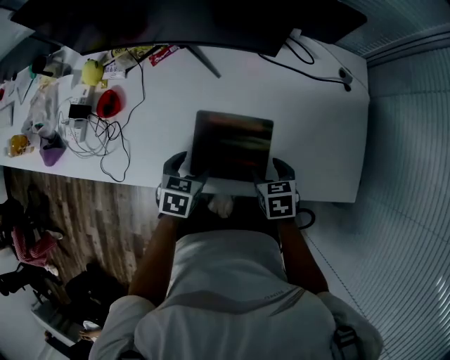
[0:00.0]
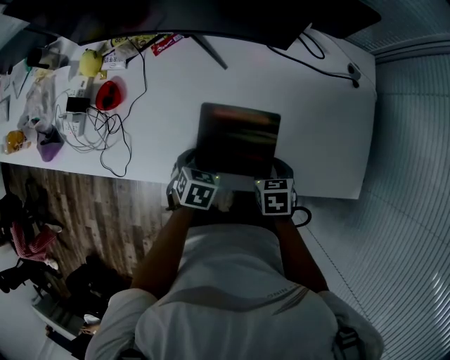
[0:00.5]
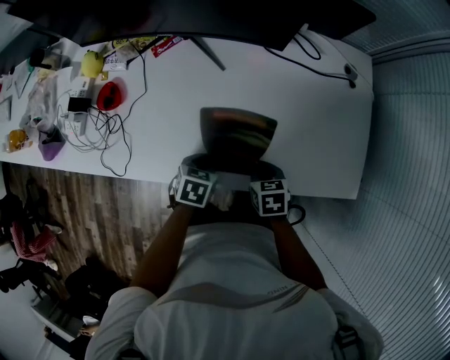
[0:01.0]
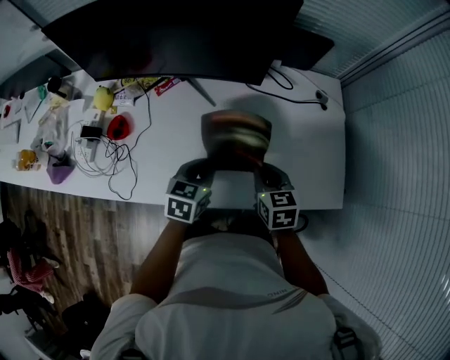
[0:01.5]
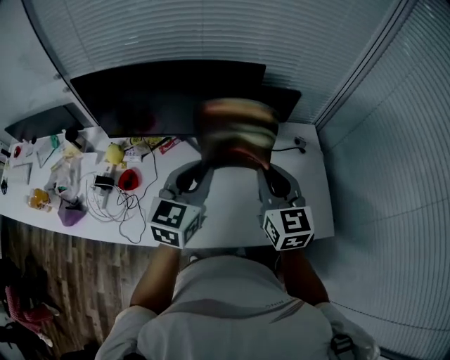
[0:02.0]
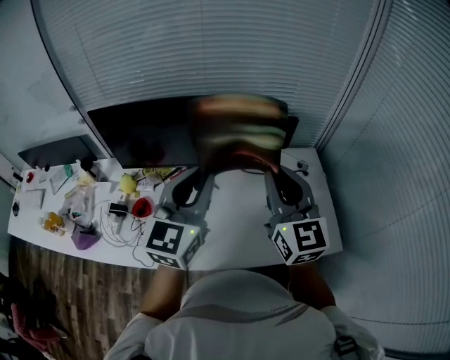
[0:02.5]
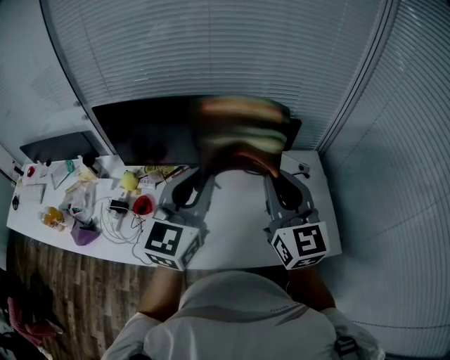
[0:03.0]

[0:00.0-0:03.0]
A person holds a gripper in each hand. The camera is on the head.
0:00.0 to 0:01.5: The grippers both shift upward by some 10 cm. The right gripper swivels about 20 degrees, and closes its fingers. The left gripper closes up.
0:01.5 to 0:03.0: Both grippers move upward, approximately 35 cm. The right gripper angles its fingers upward, by about 50 degrees. Meanwhile the left gripper angles its fingers upward, by some 40 degrees.

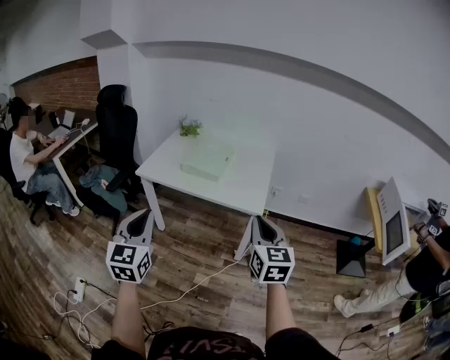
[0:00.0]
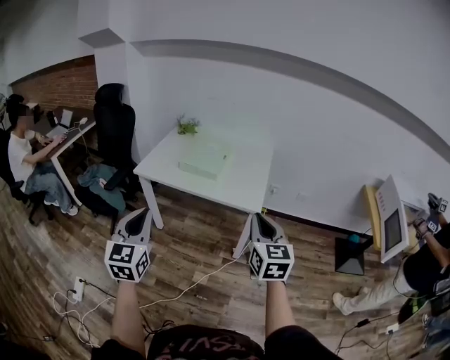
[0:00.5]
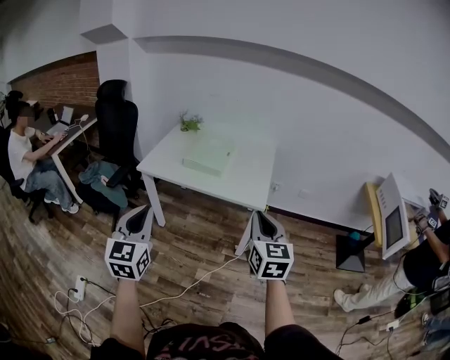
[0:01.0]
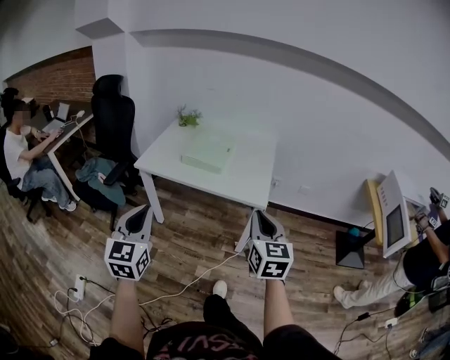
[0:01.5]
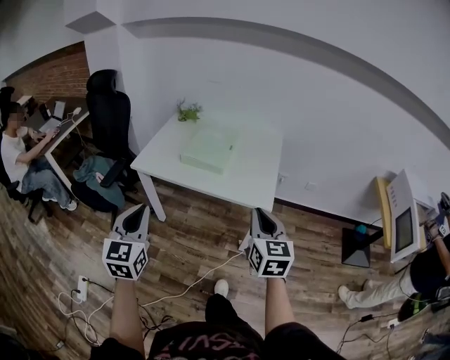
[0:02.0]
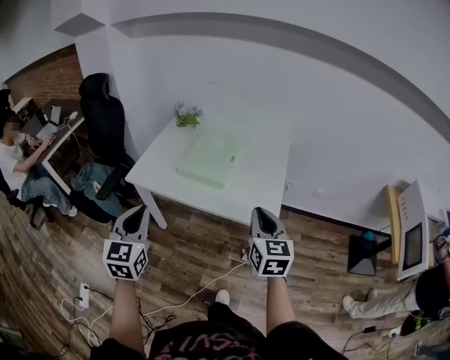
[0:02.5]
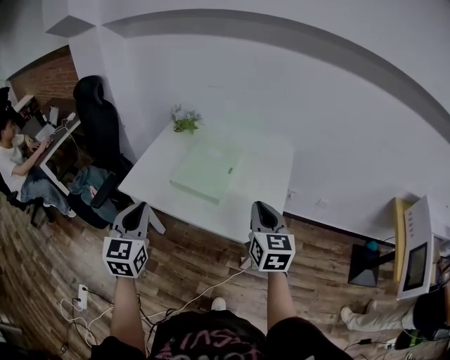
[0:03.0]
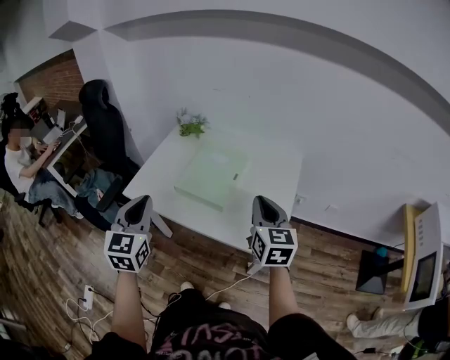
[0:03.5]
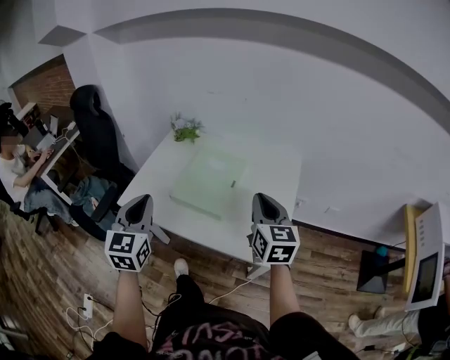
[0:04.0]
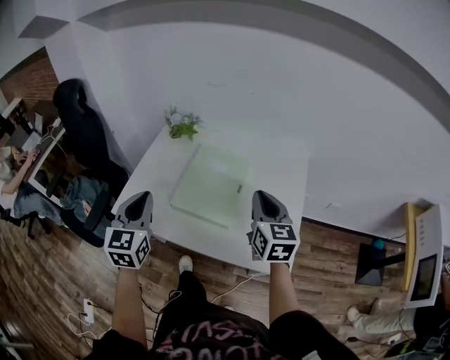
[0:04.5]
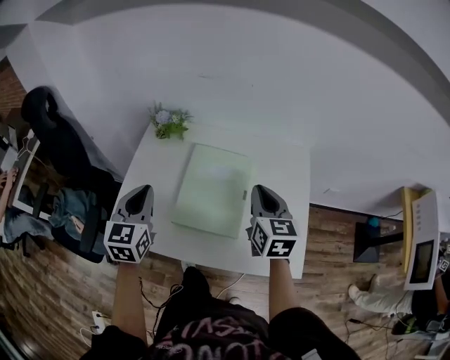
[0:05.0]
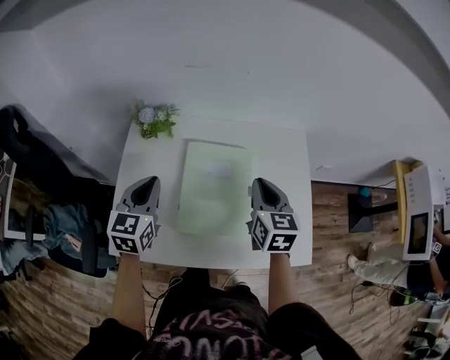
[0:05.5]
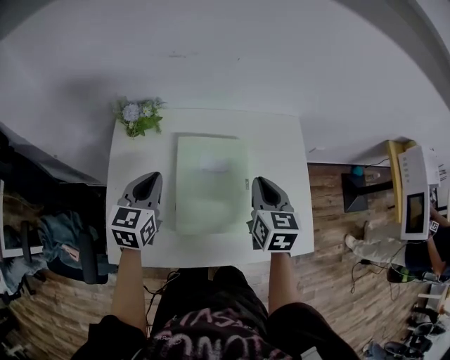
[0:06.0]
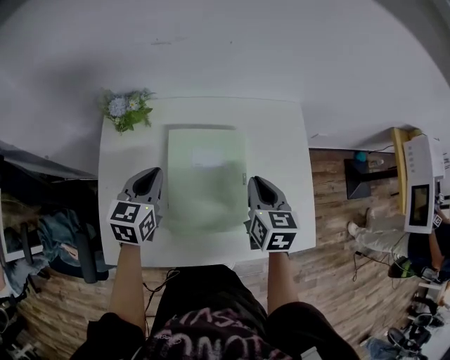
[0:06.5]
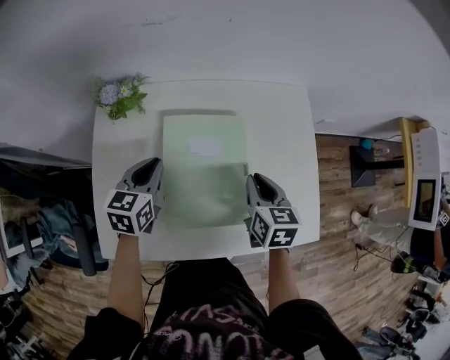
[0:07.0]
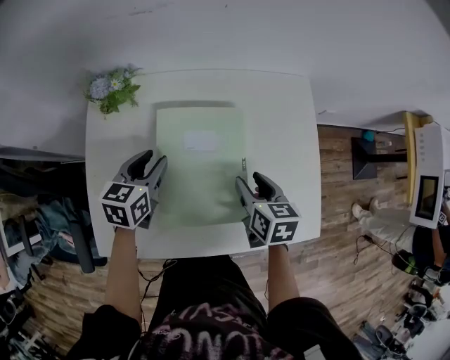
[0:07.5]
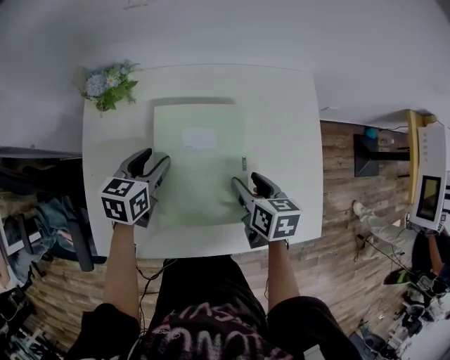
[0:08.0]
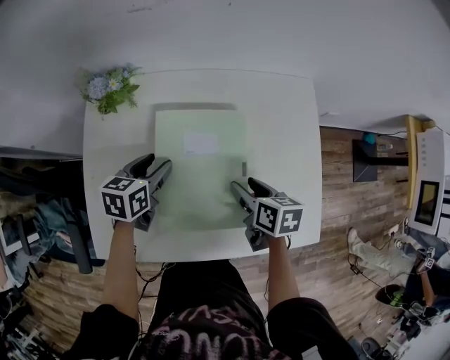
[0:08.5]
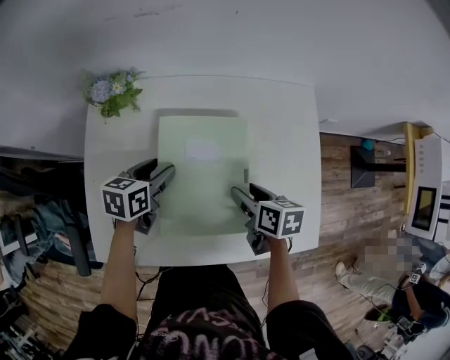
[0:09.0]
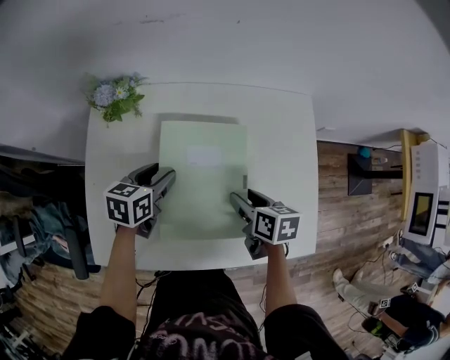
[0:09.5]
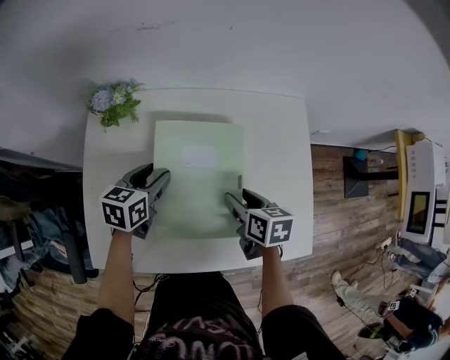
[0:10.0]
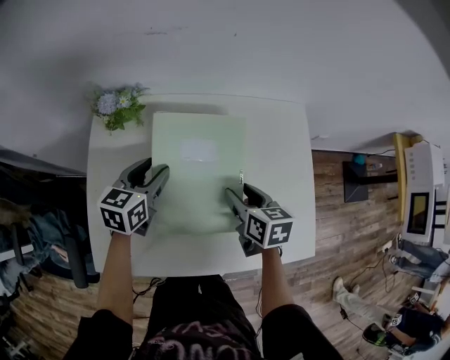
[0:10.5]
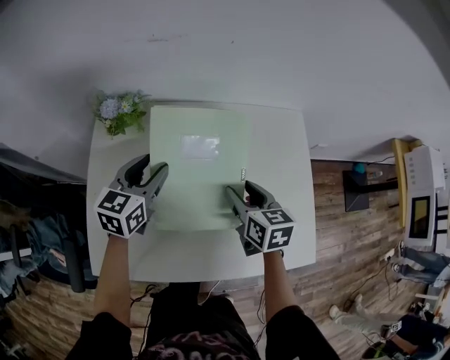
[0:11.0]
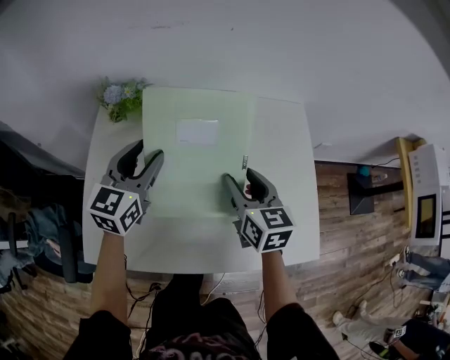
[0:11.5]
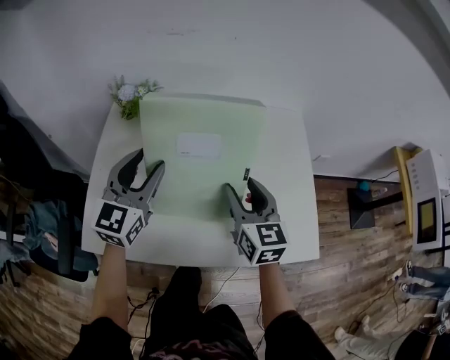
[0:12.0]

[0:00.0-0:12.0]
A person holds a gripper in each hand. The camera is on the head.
0:00.0 to 0:02.0: The grippers both shift forward by some 10 cm.
0:02.0 to 0:04.0: The two grippers go roughly 30 cm forward.
0:04.0 to 0:06.0: The left gripper shifts by some 35 cm, and rotates approximately 40 degrees. The right gripper changes place by roughly 25 cm, and rotates approximately 30 degrees.
0:06.0 to 0:08.0: The left gripper goes roughly 15 cm downward and to the right, changes its angle by about 20 degrees, and opens its fingers, while the right gripper travels downward by approximately 15 cm, rotates about 30 degrees, and opens up.
0:08.0 to 0:10.0: The grippers make only small movements.
0:10.0 to 0:12.0: The left gripper moves upward and backward, roughly 15 cm, and points its fingers roughly 30 degrees further upward. The right gripper is displaced upward by roughly 10 cm, and tips its fingers upward by some 30 degrees.

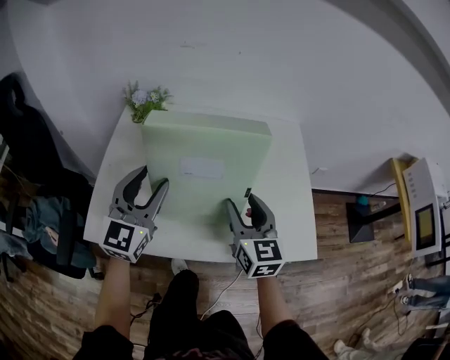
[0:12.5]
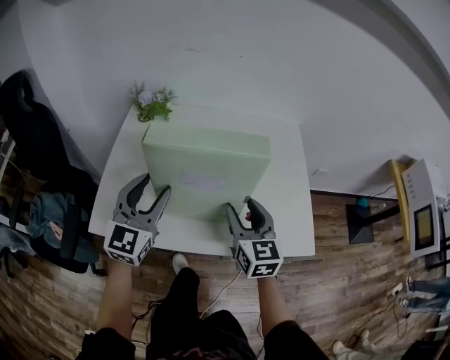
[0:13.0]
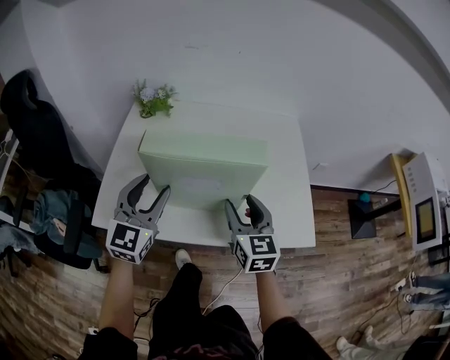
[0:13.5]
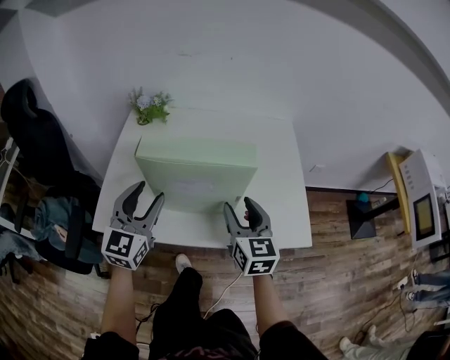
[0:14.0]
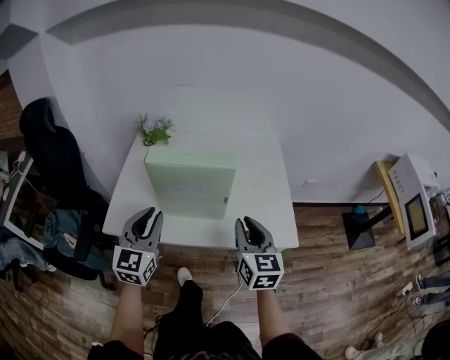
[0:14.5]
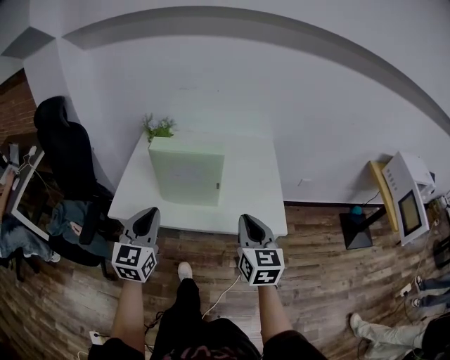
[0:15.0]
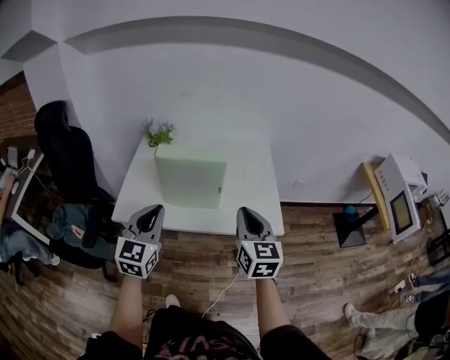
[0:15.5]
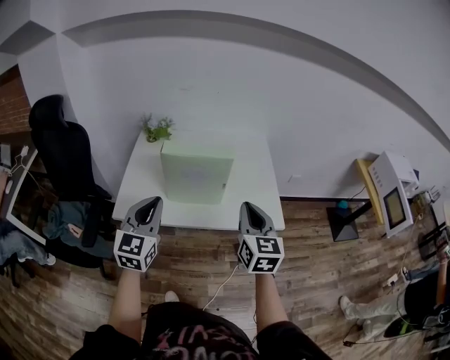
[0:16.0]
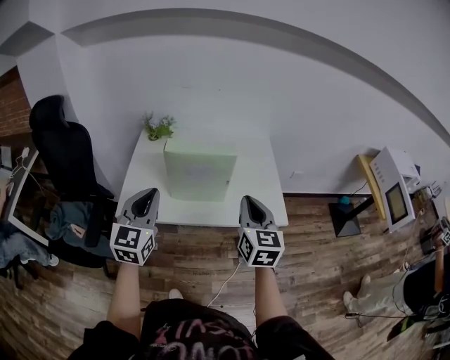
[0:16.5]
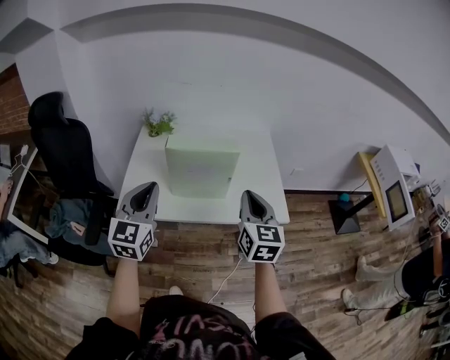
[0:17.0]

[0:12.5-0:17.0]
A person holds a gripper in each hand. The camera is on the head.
0:12.5 to 0:14.5: The right gripper travels backward and upward by about 15 cm, and closes. Meanwhile the left gripper moves backward, roughly 15 cm, and closes.
0:14.5 to 0:17.0: The two grippers go approximately 15 cm upward and backward.

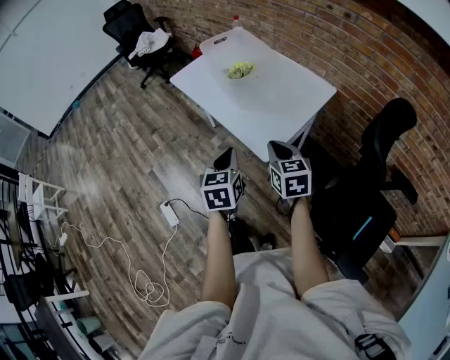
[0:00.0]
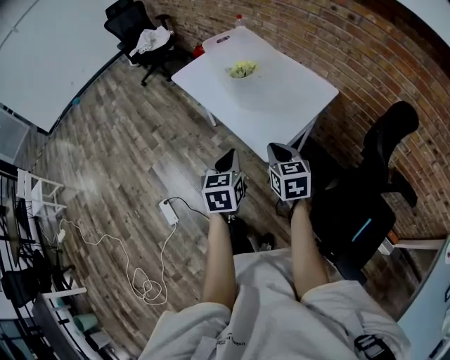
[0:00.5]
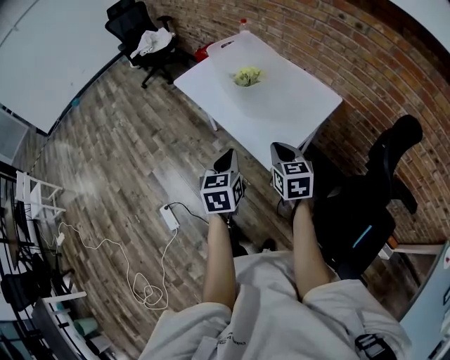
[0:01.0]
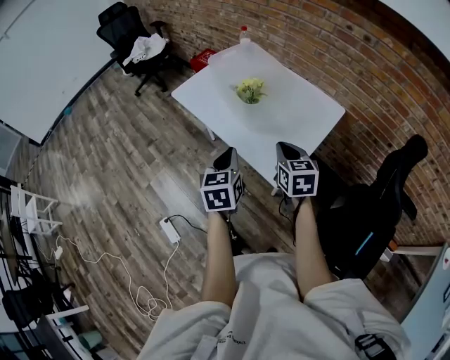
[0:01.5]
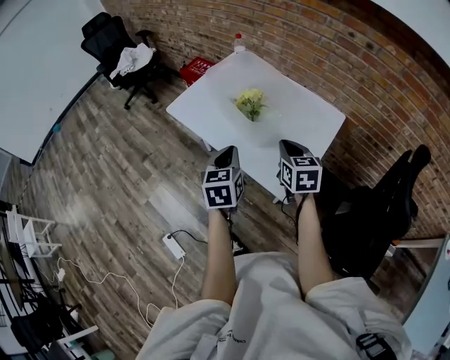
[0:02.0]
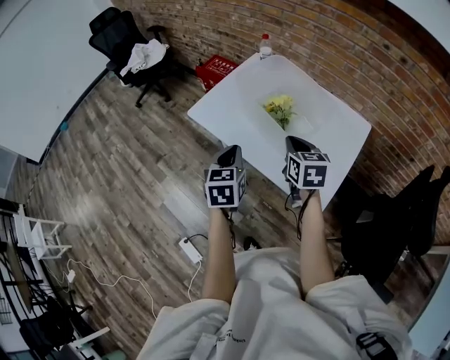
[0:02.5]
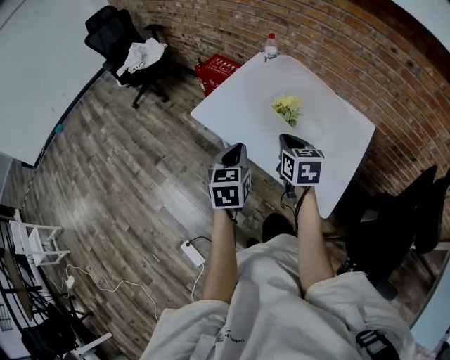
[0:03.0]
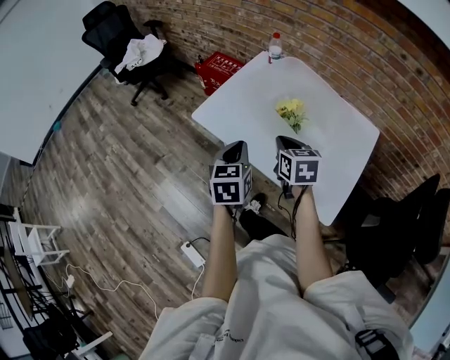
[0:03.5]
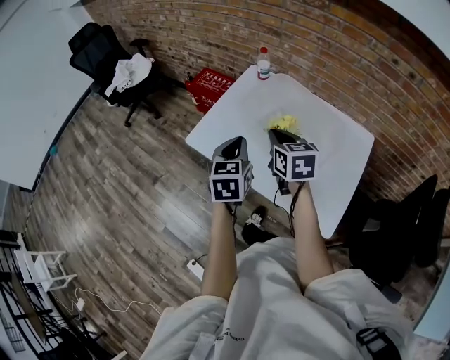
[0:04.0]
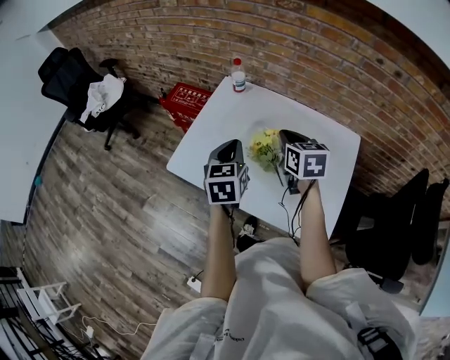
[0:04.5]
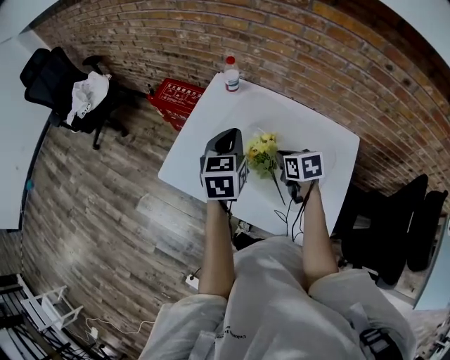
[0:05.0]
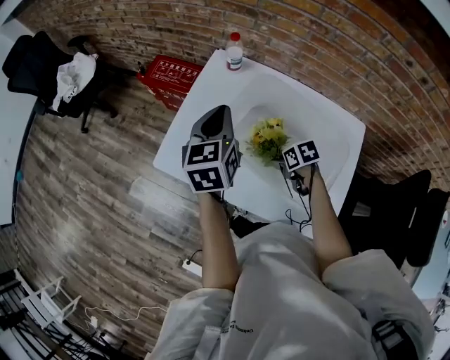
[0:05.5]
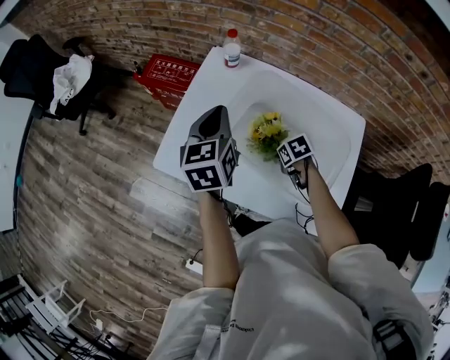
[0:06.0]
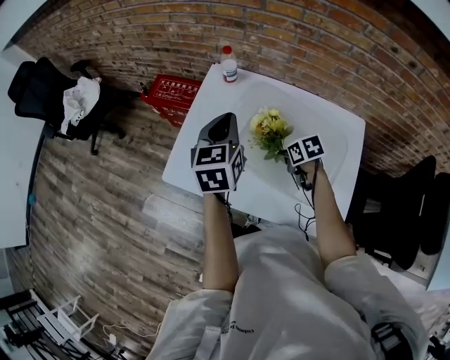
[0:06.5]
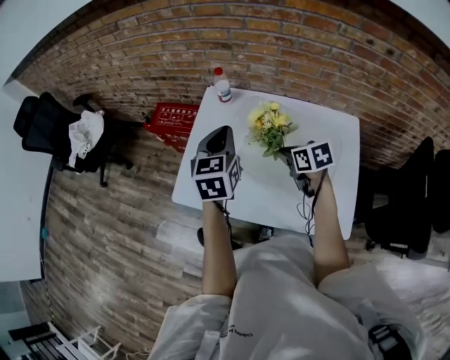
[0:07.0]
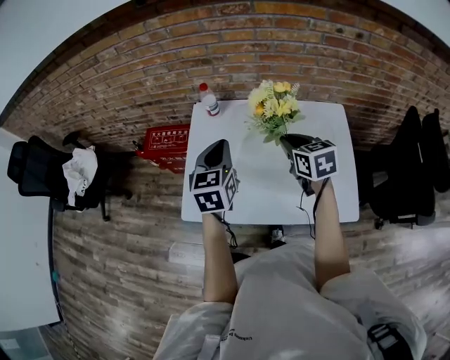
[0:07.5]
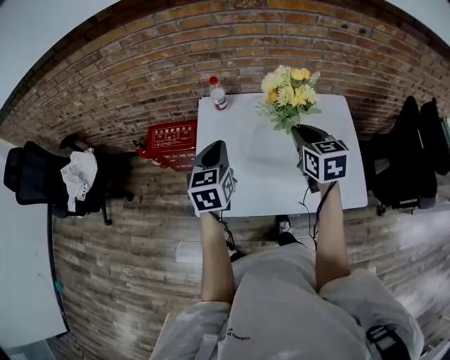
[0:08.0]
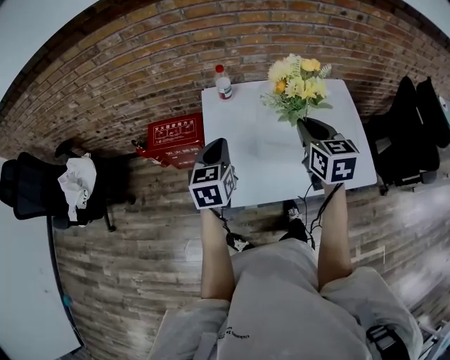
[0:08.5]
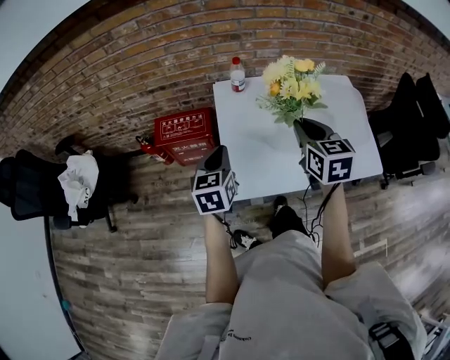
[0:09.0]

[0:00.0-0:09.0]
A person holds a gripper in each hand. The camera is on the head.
0:00.0 to 0:02.0: The grippers both shift forward by roughly 20 cm.
0:02.0 to 0:04.5: The two grippers go roughly 30 cm forward.
0:04.5 to 0:07.0: The right gripper heads downward, covering about 10 cm, turns by approximately 20 degrees, and opens and closes again. The left gripper ends up some 10 cm from where it was.
0:07.0 to 0:09.0: The right gripper moves roughly 25 cm, and changes its angle by roughly 40 degrees. Meanwhile the left gripper ends up approximately 25 cm from where it was.
